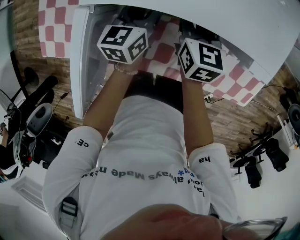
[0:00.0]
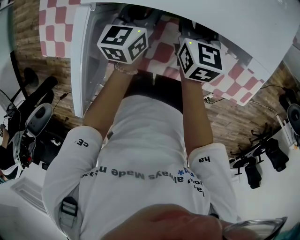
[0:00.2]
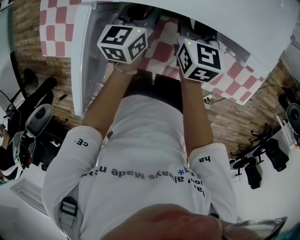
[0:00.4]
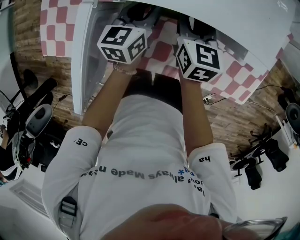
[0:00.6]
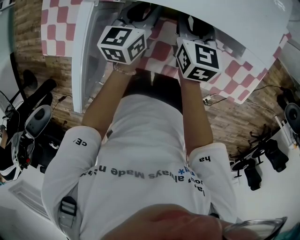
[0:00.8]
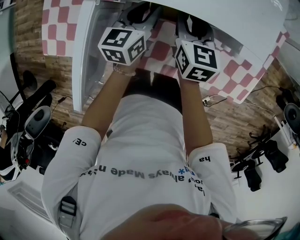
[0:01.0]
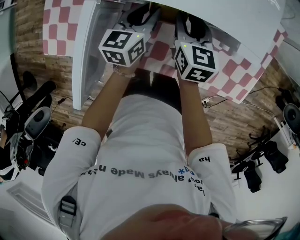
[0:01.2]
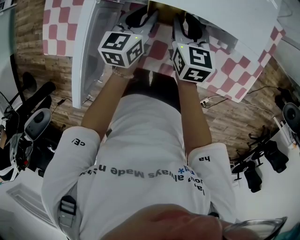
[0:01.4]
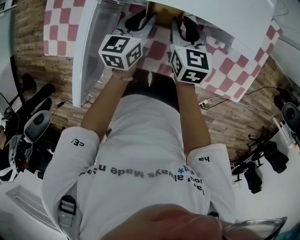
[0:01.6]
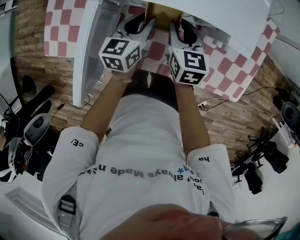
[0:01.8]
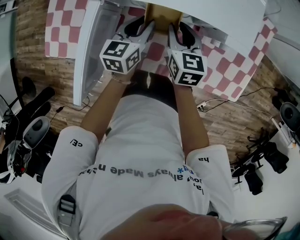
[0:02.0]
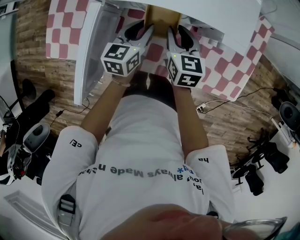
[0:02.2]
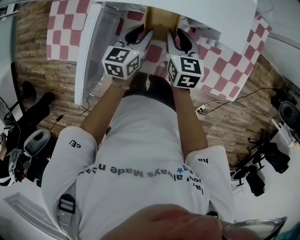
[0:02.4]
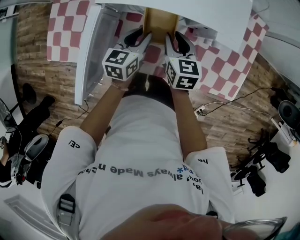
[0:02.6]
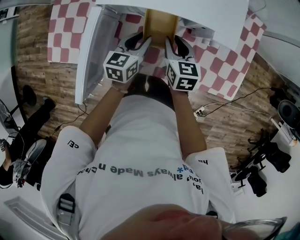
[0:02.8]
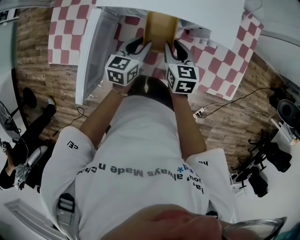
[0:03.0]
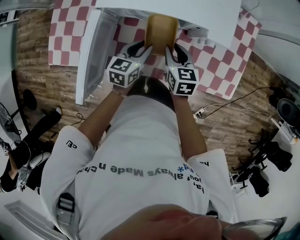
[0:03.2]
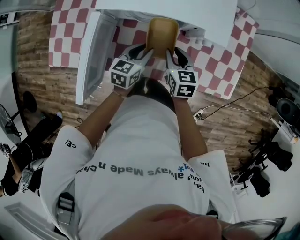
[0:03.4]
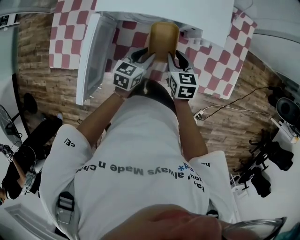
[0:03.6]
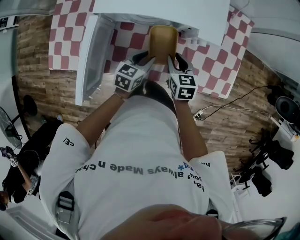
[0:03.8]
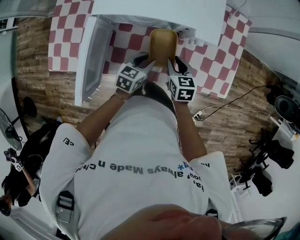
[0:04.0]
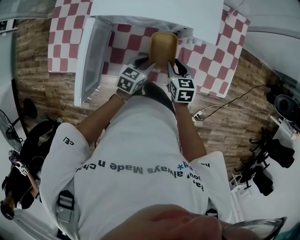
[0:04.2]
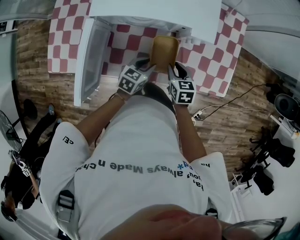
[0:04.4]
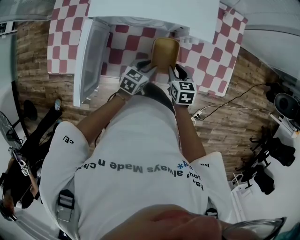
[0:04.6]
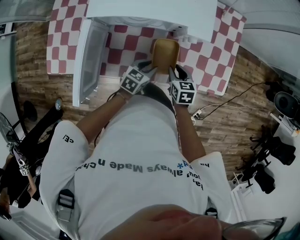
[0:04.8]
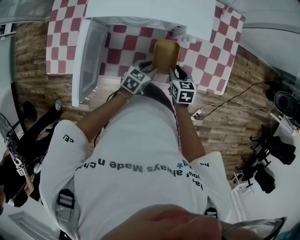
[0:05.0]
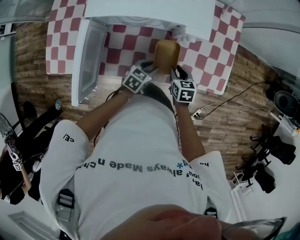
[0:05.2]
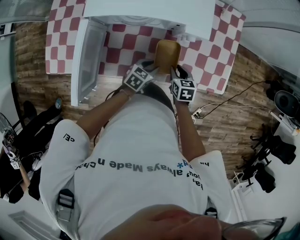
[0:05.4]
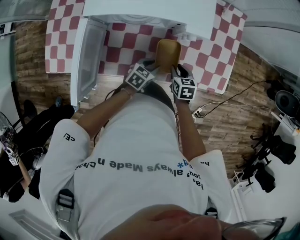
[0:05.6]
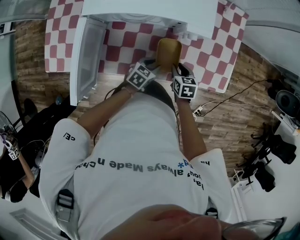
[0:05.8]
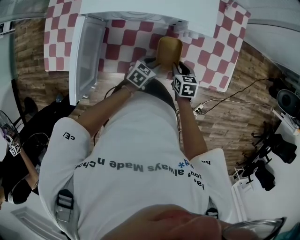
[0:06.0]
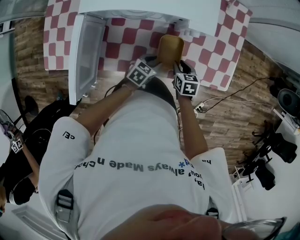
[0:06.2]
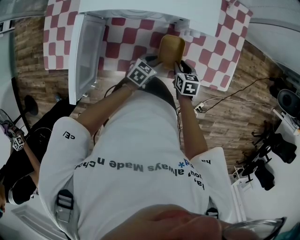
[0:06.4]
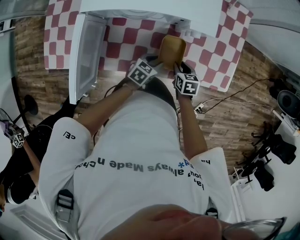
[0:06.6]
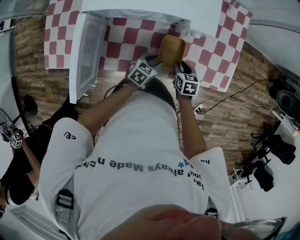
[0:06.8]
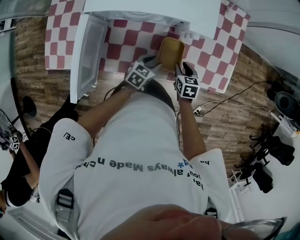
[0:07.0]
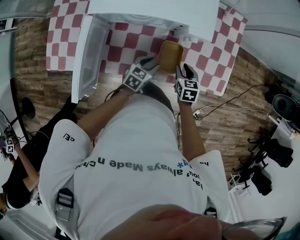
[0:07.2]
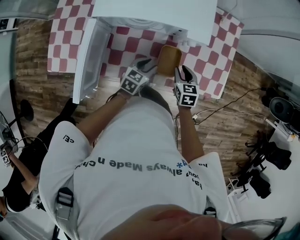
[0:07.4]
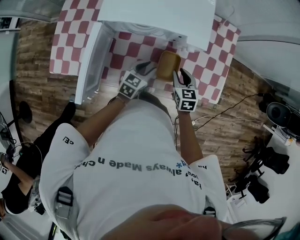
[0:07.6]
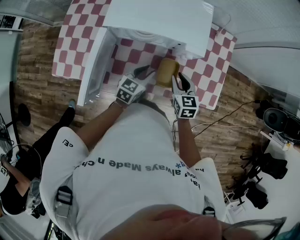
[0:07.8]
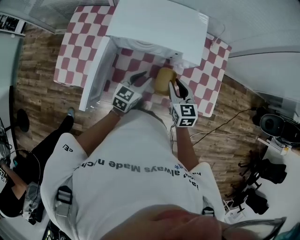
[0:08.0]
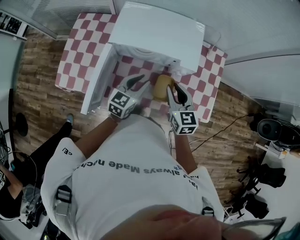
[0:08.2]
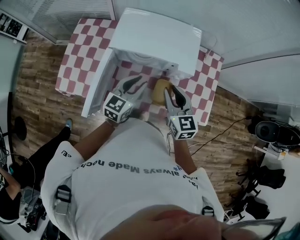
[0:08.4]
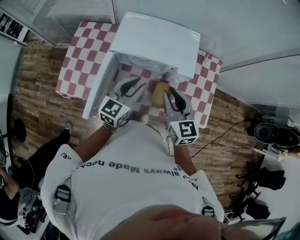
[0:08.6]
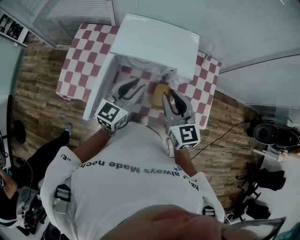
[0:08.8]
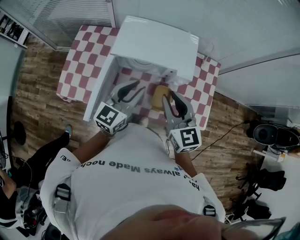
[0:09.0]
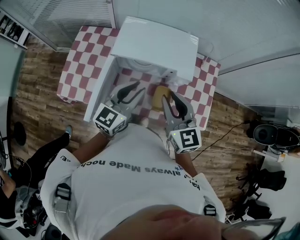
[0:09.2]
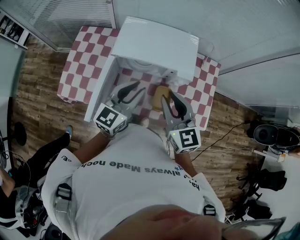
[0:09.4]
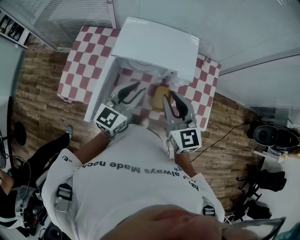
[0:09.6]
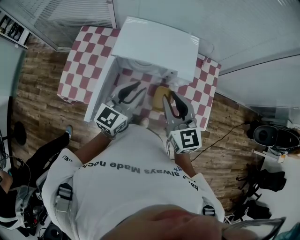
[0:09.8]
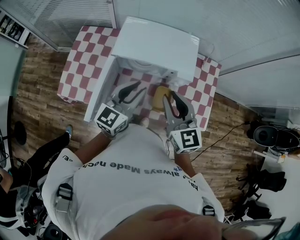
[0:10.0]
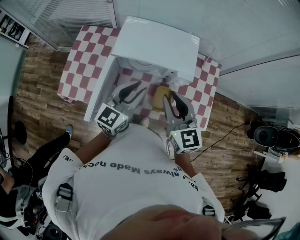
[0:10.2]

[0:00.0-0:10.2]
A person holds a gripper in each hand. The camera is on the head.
0:00.0 to 0:01.4: The left gripper shifts by some 5 cm; the right gripper changes place by roughly 5 cm.
0:01.4 to 0:03.0: The grippers both shift backward by some 10 cm.
0:03.0 to 0:04.4: Both grippers move to the right and backward, some 10 cm. The left gripper turns by roughly 20 degrees.
0:04.4 to 0:05.8: The two grippers go some 10 cm downward and to the right.
0:05.8 to 0:07.2: The grippers move only a little.
0:07.2 to 0:08.8: The two grippers go some 35 cm upward. The left gripper points its fingers approximately 30 degrees further upward, while the right gripper tilts its fingers about 40 degrees upward.
0:08.8 to 0:10.2: There are only small adjustments of the grippers.

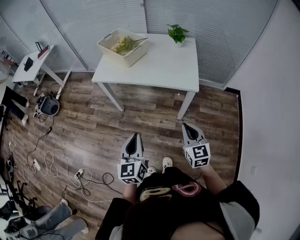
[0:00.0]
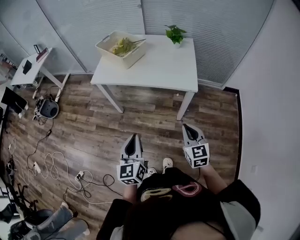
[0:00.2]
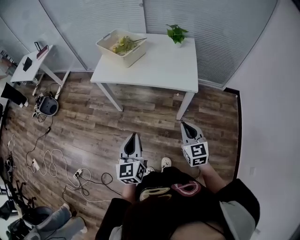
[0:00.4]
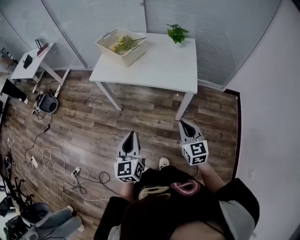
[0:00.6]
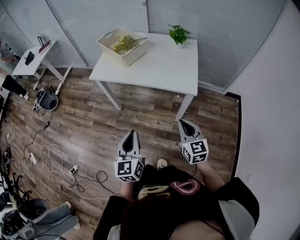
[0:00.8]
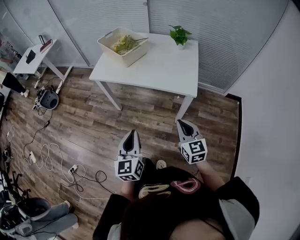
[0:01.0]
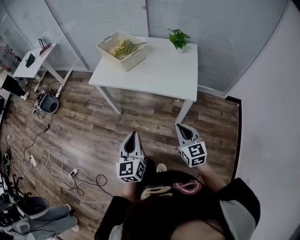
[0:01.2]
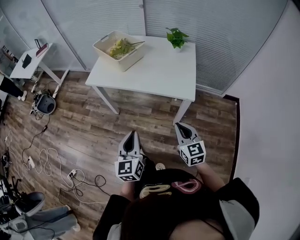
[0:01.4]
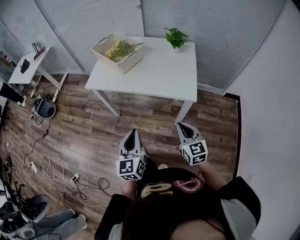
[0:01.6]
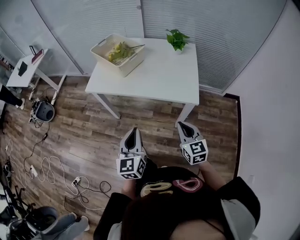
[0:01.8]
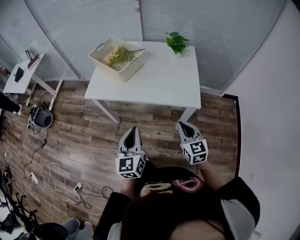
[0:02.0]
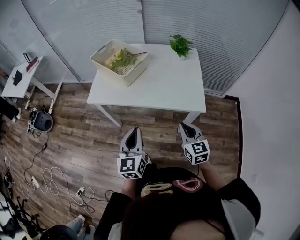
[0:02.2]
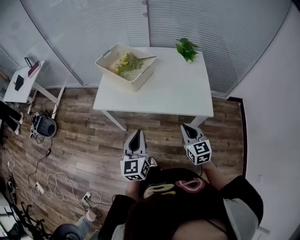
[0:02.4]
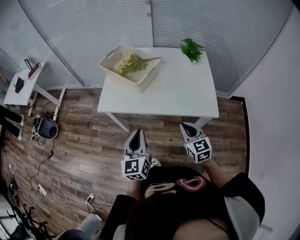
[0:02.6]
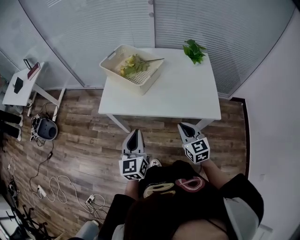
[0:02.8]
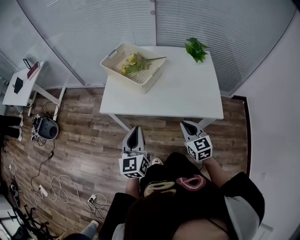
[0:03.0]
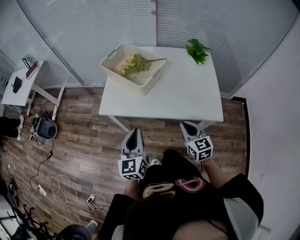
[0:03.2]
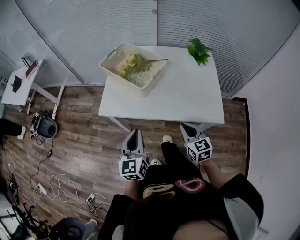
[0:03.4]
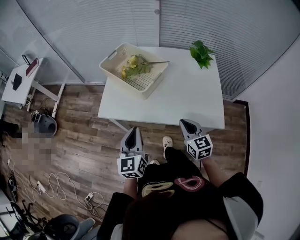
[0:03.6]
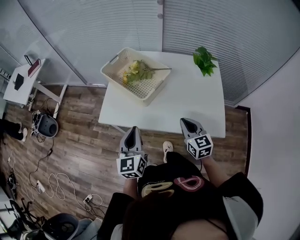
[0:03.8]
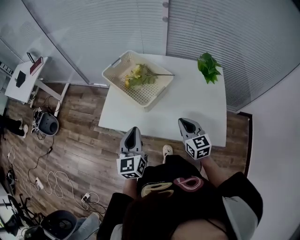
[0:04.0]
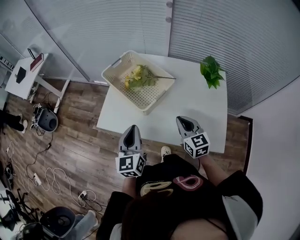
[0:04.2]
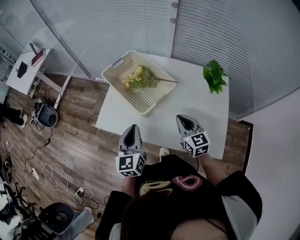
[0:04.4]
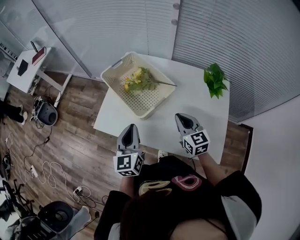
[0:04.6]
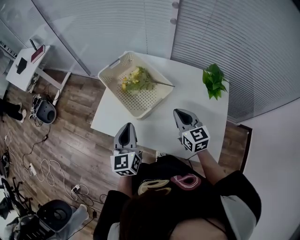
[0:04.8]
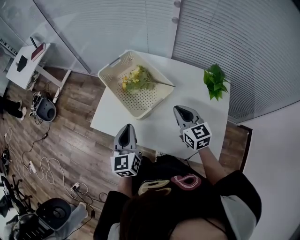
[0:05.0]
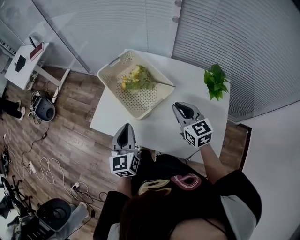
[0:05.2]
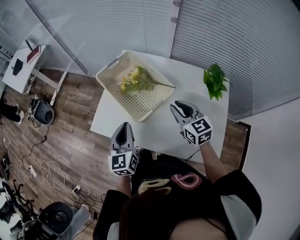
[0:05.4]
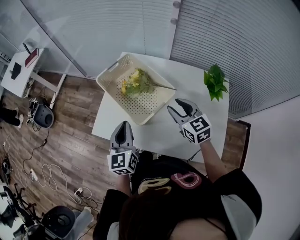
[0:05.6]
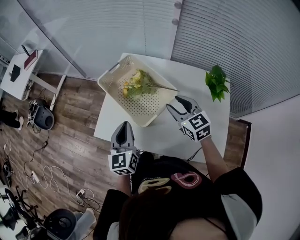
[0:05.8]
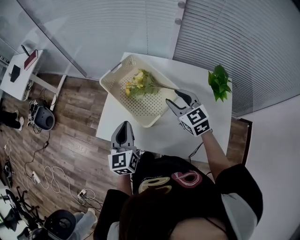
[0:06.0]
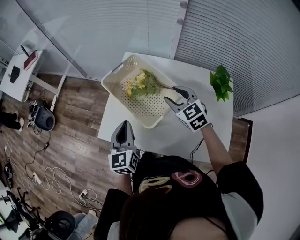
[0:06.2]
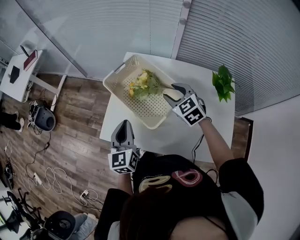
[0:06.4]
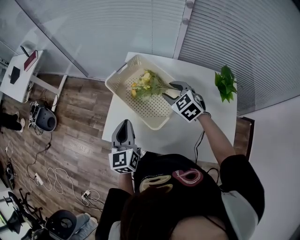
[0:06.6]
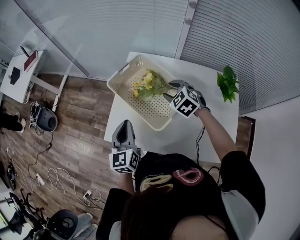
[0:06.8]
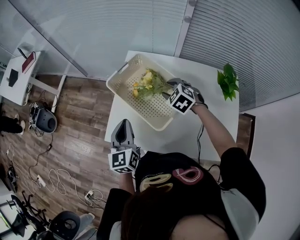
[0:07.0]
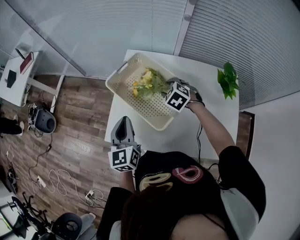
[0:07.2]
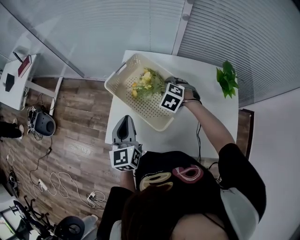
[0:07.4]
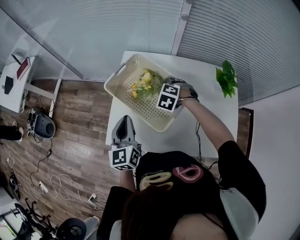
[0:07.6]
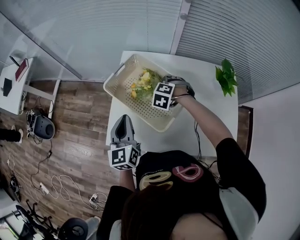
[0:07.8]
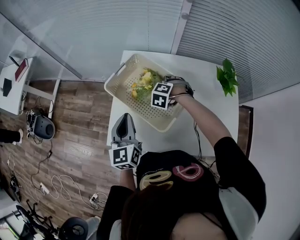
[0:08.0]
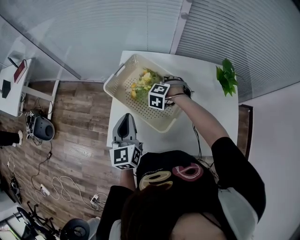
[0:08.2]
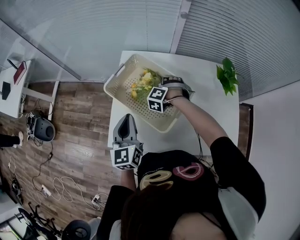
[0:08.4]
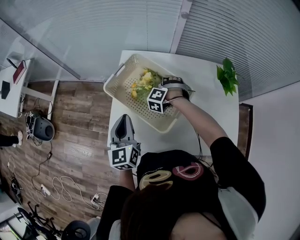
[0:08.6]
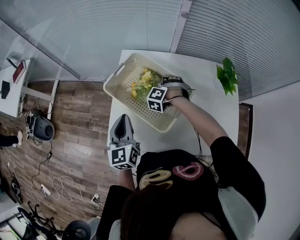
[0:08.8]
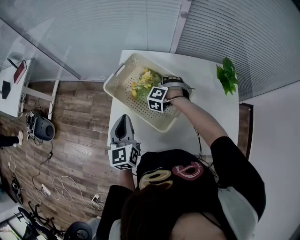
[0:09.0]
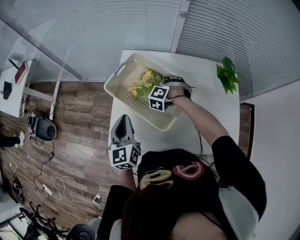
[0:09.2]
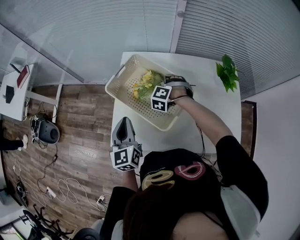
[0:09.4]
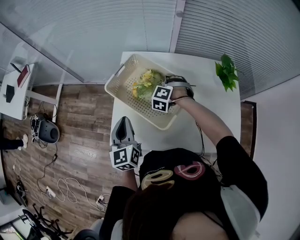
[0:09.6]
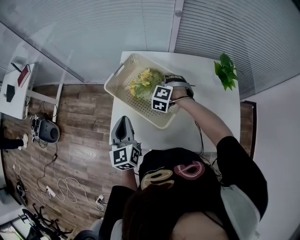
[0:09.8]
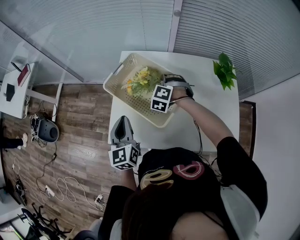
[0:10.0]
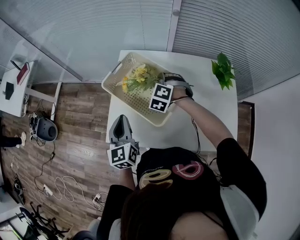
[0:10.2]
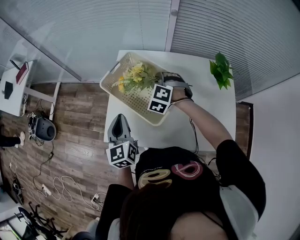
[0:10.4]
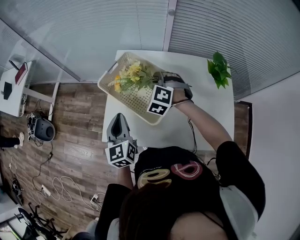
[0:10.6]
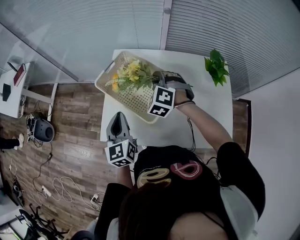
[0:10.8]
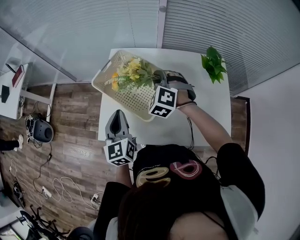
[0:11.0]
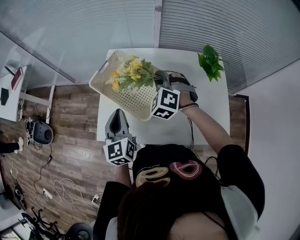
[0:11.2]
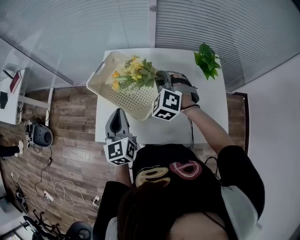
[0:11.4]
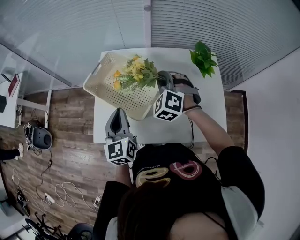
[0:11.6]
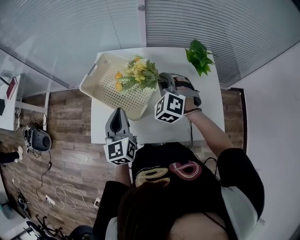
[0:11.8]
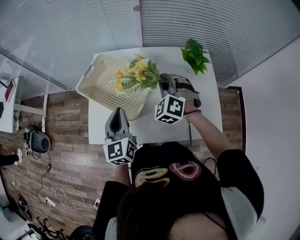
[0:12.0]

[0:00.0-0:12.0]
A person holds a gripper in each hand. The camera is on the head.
0:00.0 to 0:01.6: Both grippers move forward, approximately 10 cm.
0:01.6 to 0:03.0: The two grippers go approximately 25 cm forward and to the left.
0:03.0 to 0:04.4: Both grippers travel together forward, some 20 cm.
0:04.4 to 0:06.0: The left gripper goes about 10 cm forward. Meanwhile the right gripper is displaced forward by roughly 15 cm, and opens.
0:06.0 to 0:07.6: The right gripper goes roughly 15 cm downward, forward and to the left, and angles its fingers downward, by approximately 40 degrees. The left gripper shifts approximately 5 cm forward.
0:07.6 to 0:09.0: The right gripper changes place by about 5 cm, turns by about 30 degrees, and closes.
0:09.0 to 0:10.4: The right gripper moves upward, some 10 cm, and swivels about 30 degrees.
0:10.4 to 0:12.0: The right gripper heads to the right, backward and upward, covering about 15 cm, while the left gripper goes approximately 10 cm to the right.

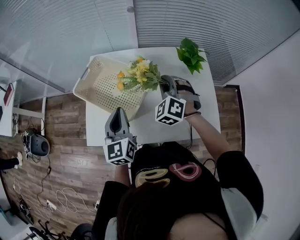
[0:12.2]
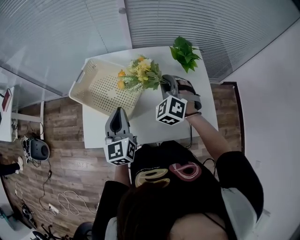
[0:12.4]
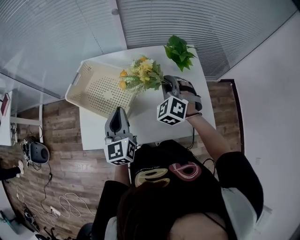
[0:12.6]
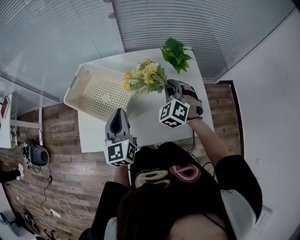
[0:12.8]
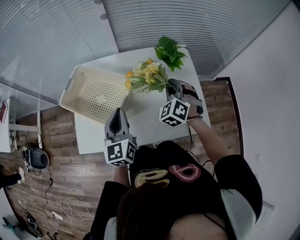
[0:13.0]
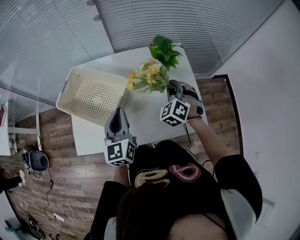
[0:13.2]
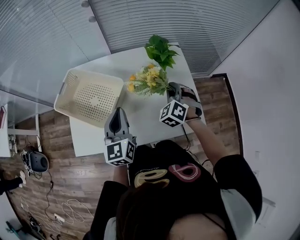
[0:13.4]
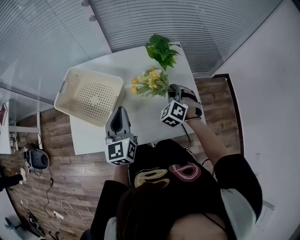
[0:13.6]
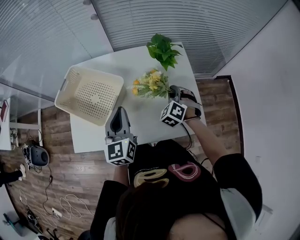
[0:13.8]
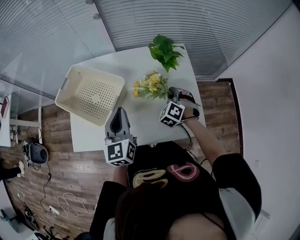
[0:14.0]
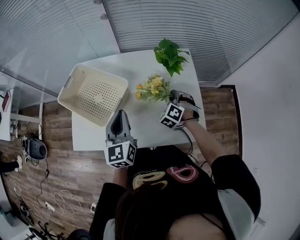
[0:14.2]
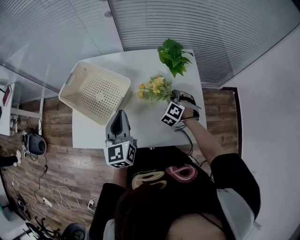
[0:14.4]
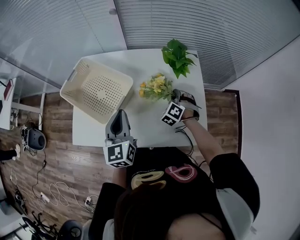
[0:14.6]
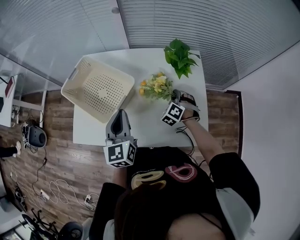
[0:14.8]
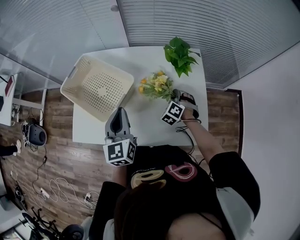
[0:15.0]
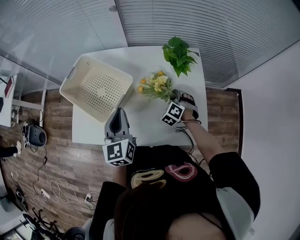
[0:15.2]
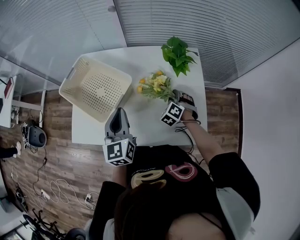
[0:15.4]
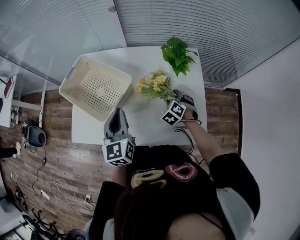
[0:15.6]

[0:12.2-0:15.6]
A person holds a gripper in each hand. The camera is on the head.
0:12.2 to 0:13.8: The left gripper travels to the right by approximately 15 cm. Meanwhile the right gripper travels to the right and downward by some 20 cm.
0:13.8 to 0:15.6: The right gripper goes about 10 cm downward, and opens up.
